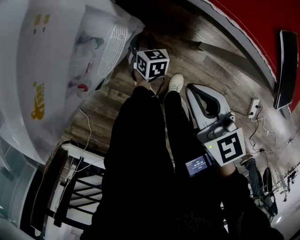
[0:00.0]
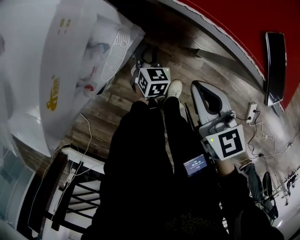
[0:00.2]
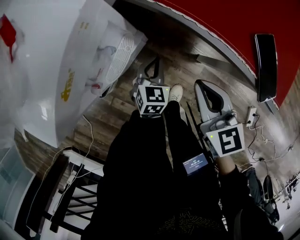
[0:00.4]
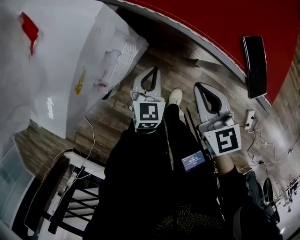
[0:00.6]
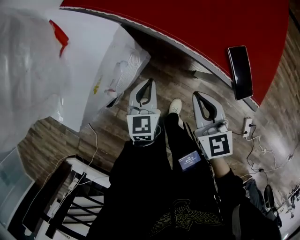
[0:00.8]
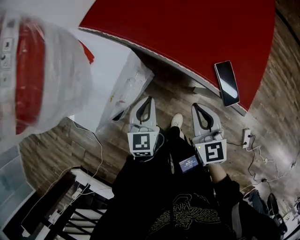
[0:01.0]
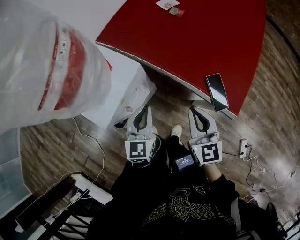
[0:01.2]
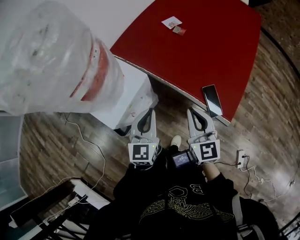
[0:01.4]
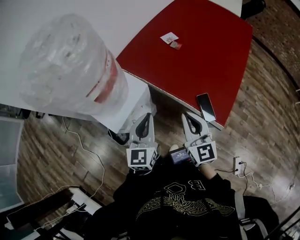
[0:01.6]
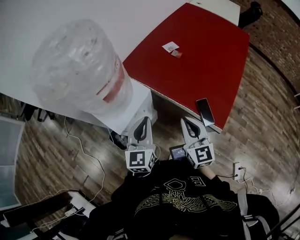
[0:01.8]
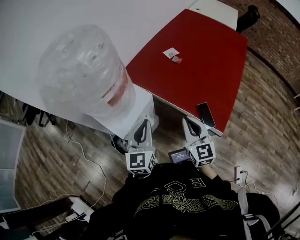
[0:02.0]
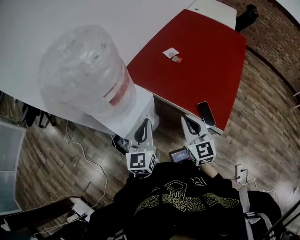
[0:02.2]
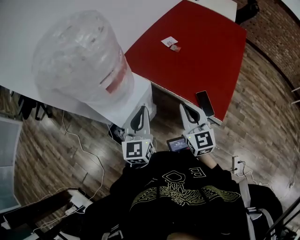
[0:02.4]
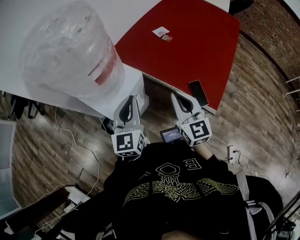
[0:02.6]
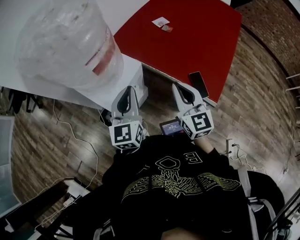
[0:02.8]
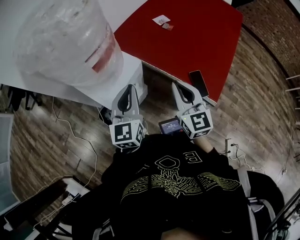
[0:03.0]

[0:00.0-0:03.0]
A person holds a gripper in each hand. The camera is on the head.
0.0 to 1.6 s: The left gripper goes some 60 cm upward, angles its fingers upward, by approximately 50 degrees, and closes its fingers, while the right gripper moves upward, some 35 cm, and rotates roughly 30 degrees.
1.6 to 3.0 s: The left gripper travels to the left by roughly 5 cm.

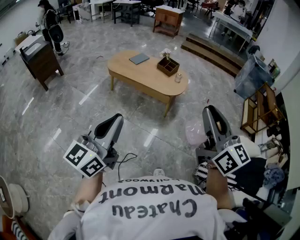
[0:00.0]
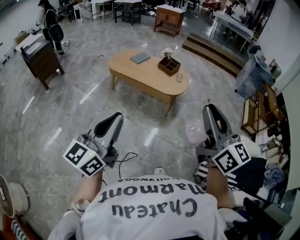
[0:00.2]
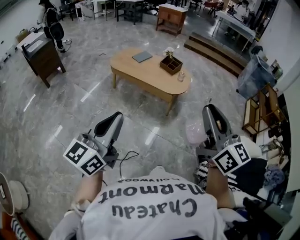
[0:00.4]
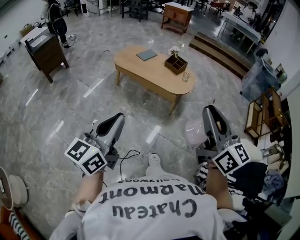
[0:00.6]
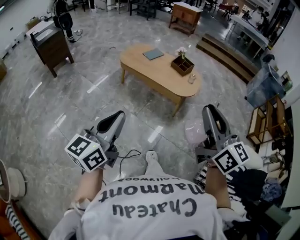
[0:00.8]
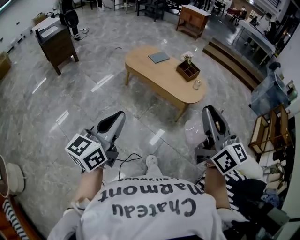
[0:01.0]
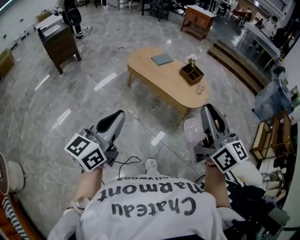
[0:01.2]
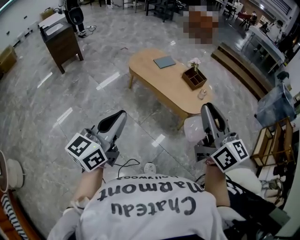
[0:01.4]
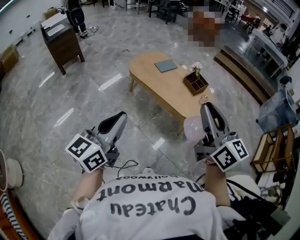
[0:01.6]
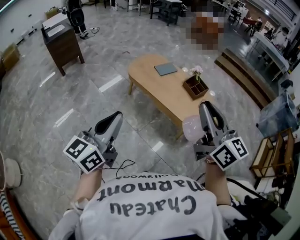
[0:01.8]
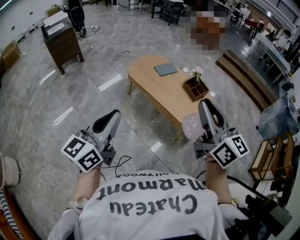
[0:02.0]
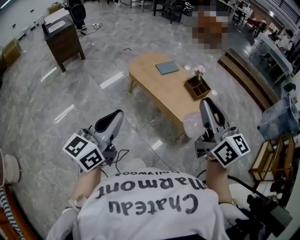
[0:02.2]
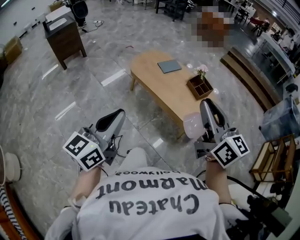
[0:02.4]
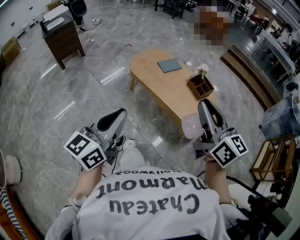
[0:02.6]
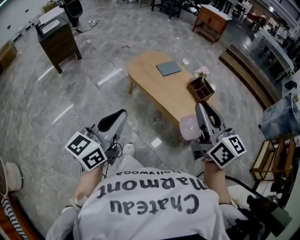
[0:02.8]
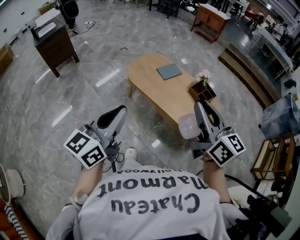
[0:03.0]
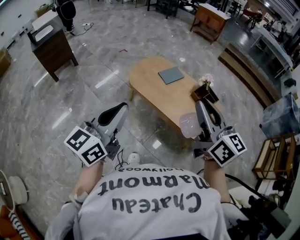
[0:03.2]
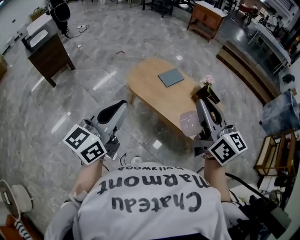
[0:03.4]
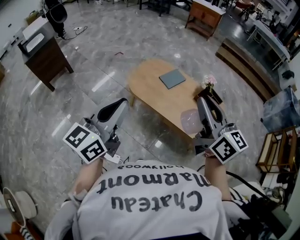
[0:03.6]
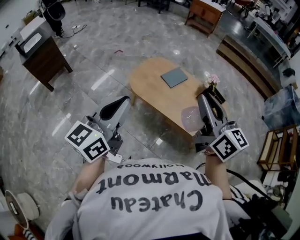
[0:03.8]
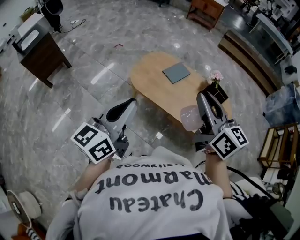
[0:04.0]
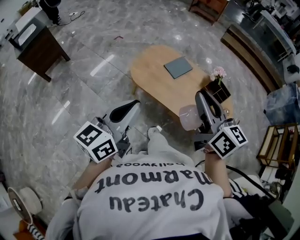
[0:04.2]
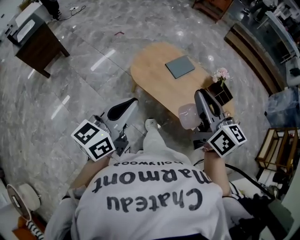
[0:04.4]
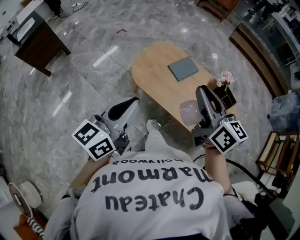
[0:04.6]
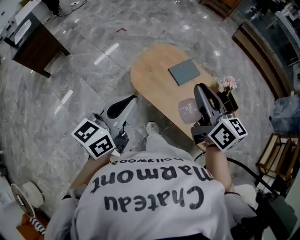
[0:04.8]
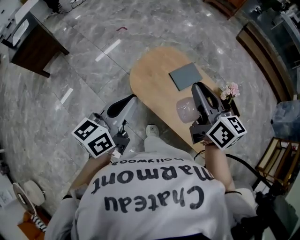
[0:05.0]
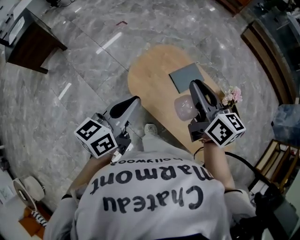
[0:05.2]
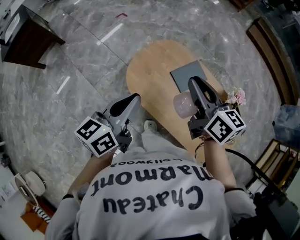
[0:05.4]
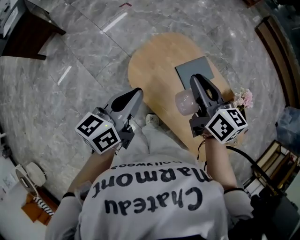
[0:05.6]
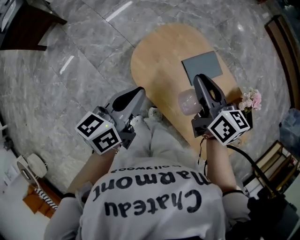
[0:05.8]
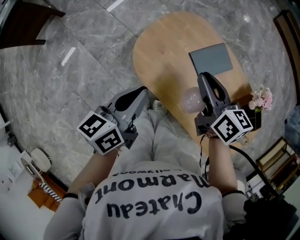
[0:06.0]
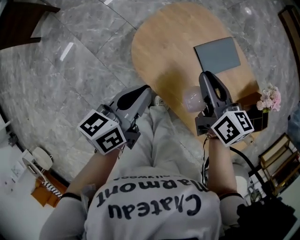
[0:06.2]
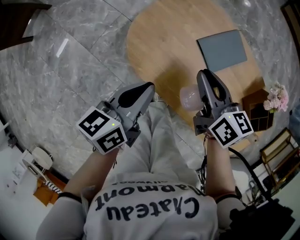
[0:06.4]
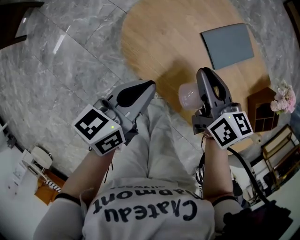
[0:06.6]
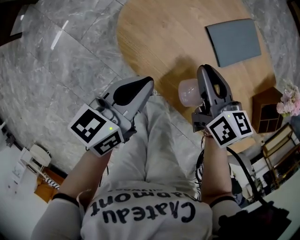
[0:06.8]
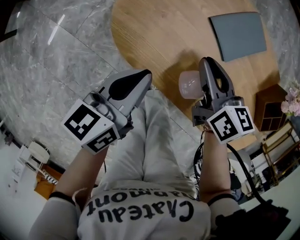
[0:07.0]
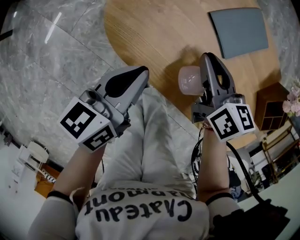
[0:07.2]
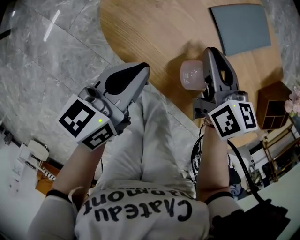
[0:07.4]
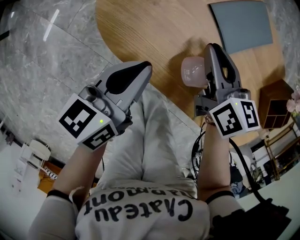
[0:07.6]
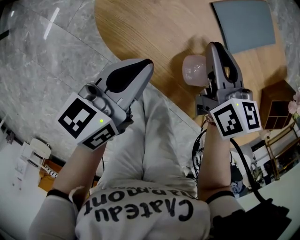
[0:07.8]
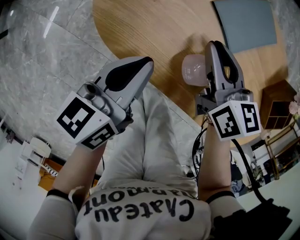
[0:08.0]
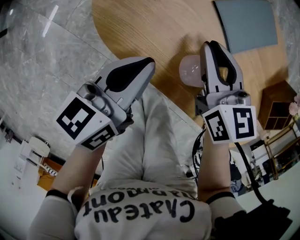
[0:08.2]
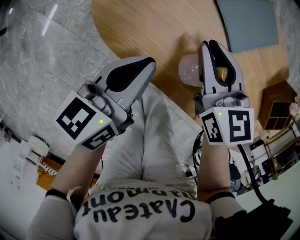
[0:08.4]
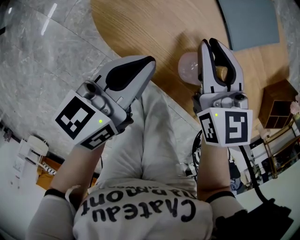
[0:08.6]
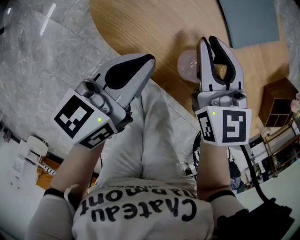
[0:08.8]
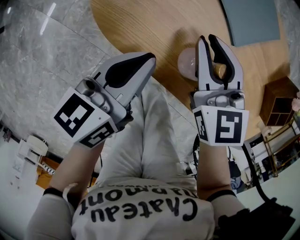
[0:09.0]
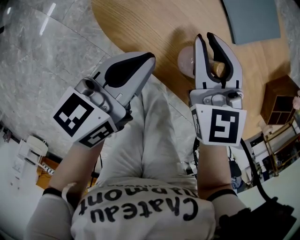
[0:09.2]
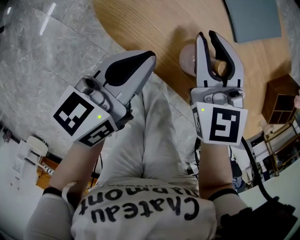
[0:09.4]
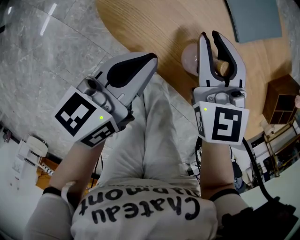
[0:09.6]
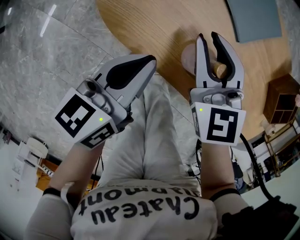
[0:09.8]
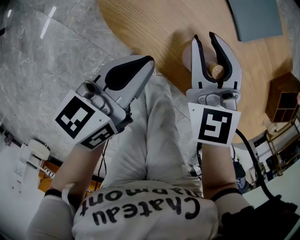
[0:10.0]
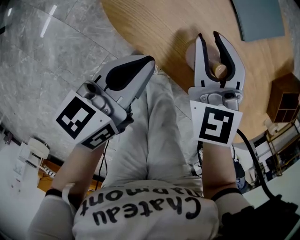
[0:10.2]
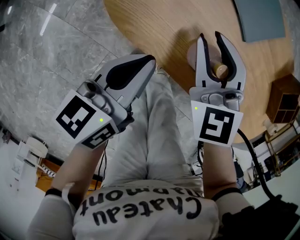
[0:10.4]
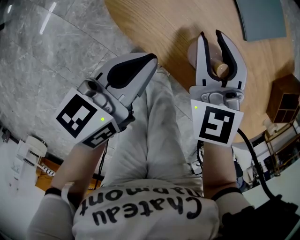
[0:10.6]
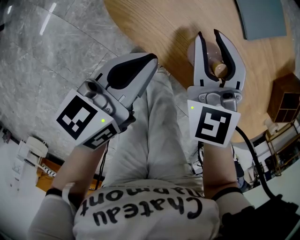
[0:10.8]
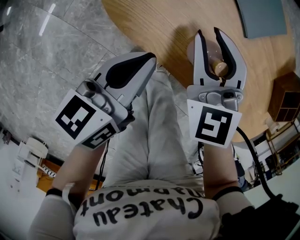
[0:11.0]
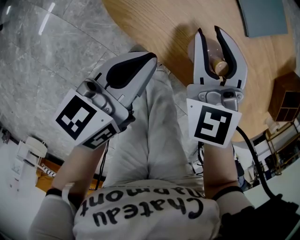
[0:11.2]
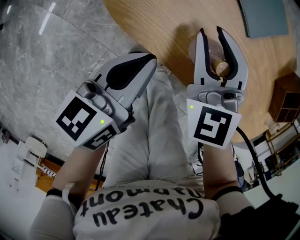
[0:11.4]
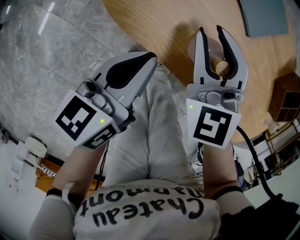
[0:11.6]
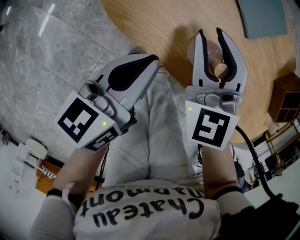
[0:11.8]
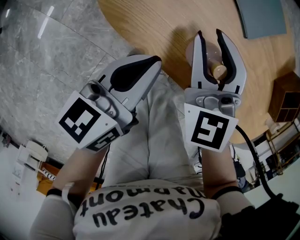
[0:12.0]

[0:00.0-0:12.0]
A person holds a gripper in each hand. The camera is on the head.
0.0 to 1.6 s: The two grippers go approximately 25 cm forward.
1.6 to 3.0 s: Both grippers move forward, about 20 cm.
3.0 to 4.4 s: The right gripper goes about 25 cm forward and to the left, while the left gripper shifts some 25 cm forward.
4.4 to 6.0 s: The two grippers go roughly 40 cm forward and downward. The right gripper turns by about 30 degrees; the left gripper rotates approximately 30 degrees.
6.0 to 7.6 s: Both grippers move downward, about 25 cm.
7.6 to 9.0 s: The right gripper moves roughly 5 cm, and changes its angle by roughly 30 degrees.
9.0 to 10.4 s: There are only small adjustments of the grippers.
10.4 to 12.0 s: There are only small adjustments of the grippers.

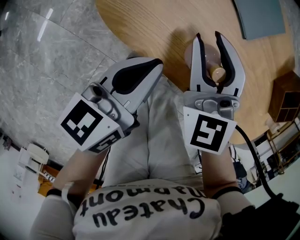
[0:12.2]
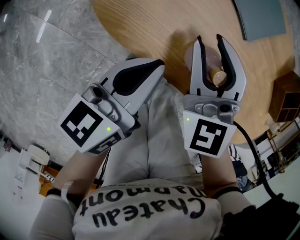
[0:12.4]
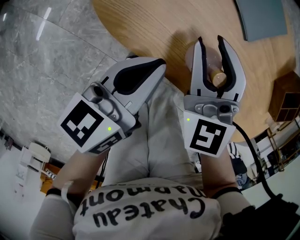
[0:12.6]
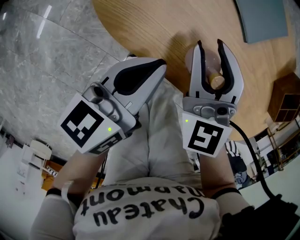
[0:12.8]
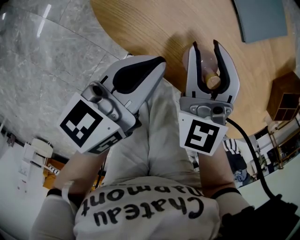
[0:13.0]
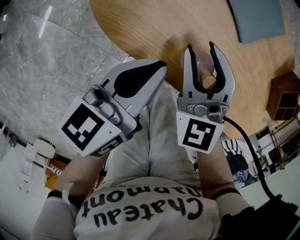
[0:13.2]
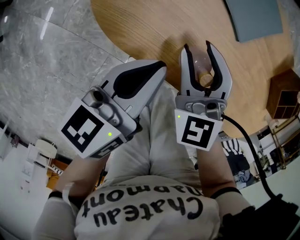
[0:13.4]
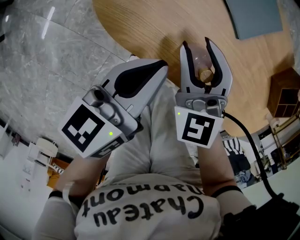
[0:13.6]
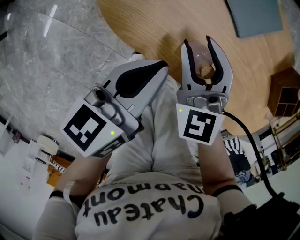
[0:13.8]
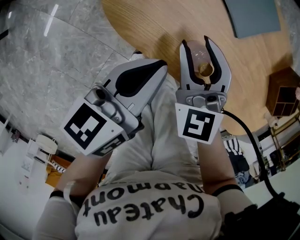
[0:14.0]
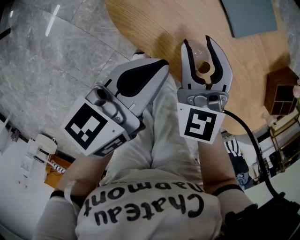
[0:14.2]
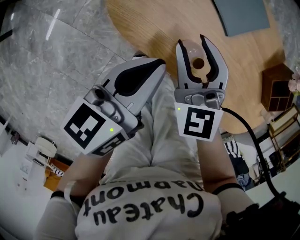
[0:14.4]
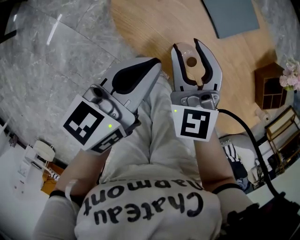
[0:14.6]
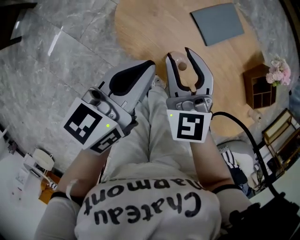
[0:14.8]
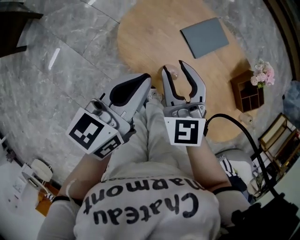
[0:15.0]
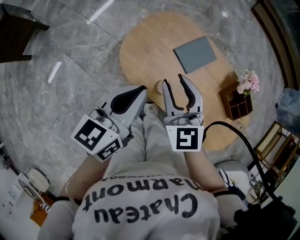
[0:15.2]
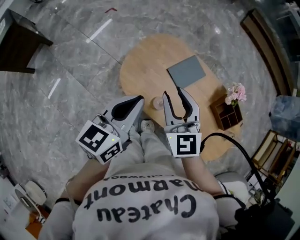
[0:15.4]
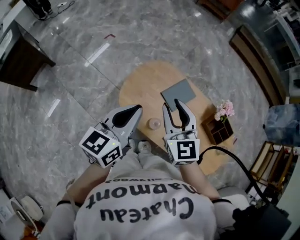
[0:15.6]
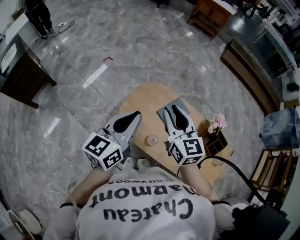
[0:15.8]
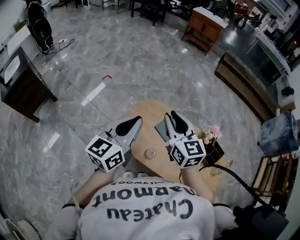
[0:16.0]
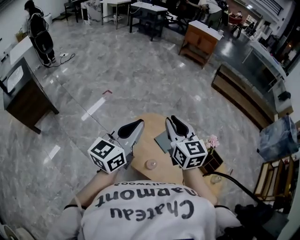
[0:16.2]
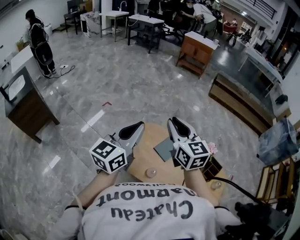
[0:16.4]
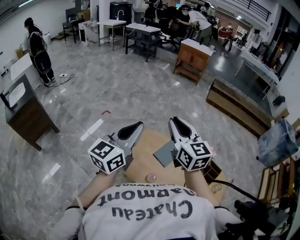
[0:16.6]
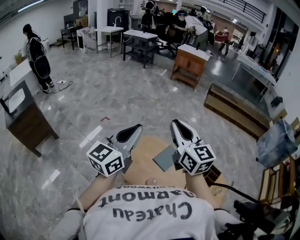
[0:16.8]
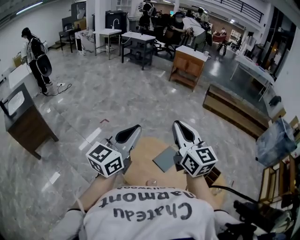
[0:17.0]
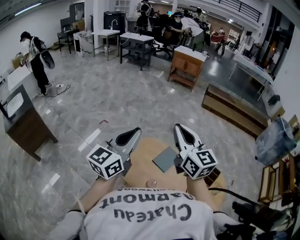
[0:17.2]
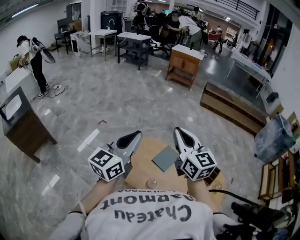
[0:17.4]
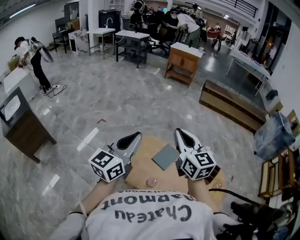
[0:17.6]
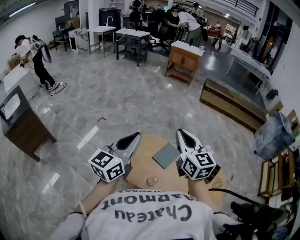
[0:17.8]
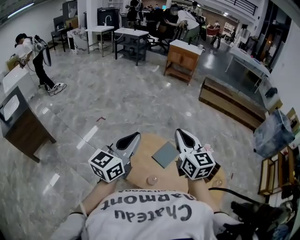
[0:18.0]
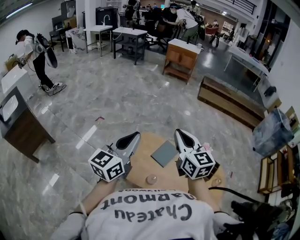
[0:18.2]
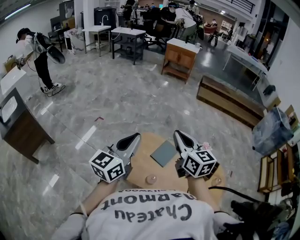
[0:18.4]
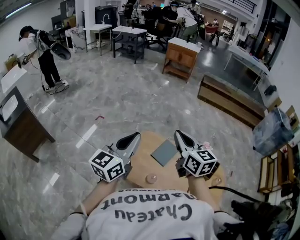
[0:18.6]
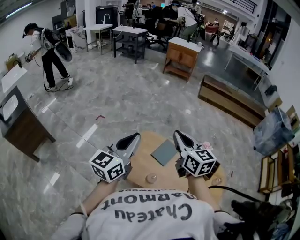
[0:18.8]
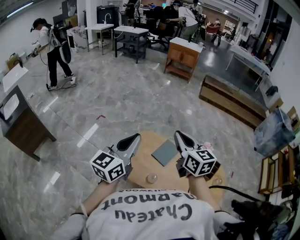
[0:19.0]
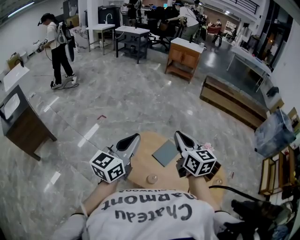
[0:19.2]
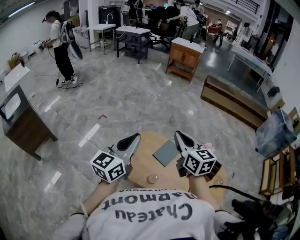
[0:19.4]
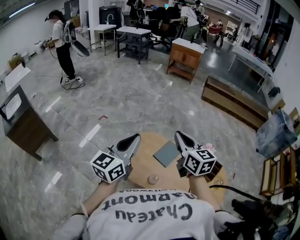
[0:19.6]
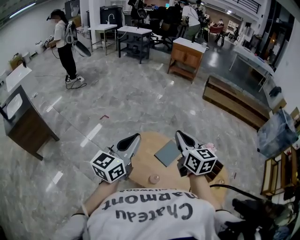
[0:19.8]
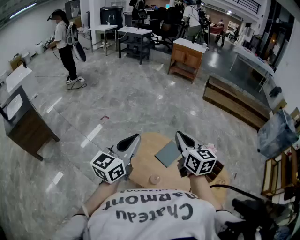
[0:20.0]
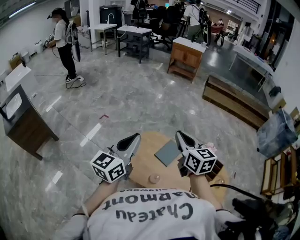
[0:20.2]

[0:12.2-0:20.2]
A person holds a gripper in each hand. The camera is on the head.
12.2 to 13.8 s: The left gripper shifts about 5 cm upward.
13.8 to 15.4 s: The grippers both shift upward by roughly 30 cm. The left gripper swivels some 20 degrees.
15.4 to 17.0 s: The grippers both shift upward by about 30 cm. The left gripper rotates about 30 degrees. Meanwhile the right gripper changes its angle by roughly 20 degrees, and closes.
17.0 to 18.6 s: The left gripper shifts roughly 5 cm downward. Meanwhile the right gripper is displaced downward by some 10 cm.
18.6 to 20.2 s: The grippers move only a little.

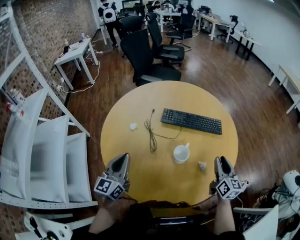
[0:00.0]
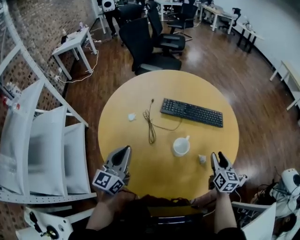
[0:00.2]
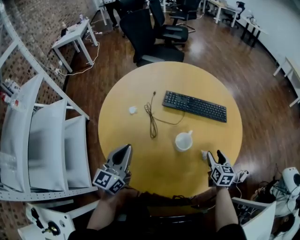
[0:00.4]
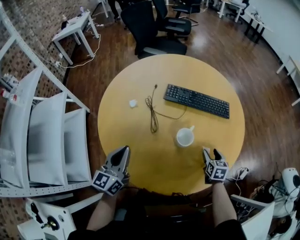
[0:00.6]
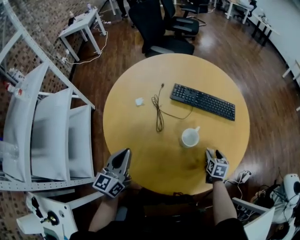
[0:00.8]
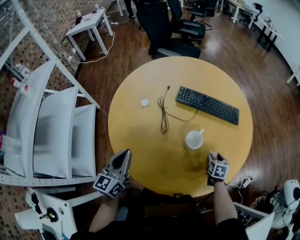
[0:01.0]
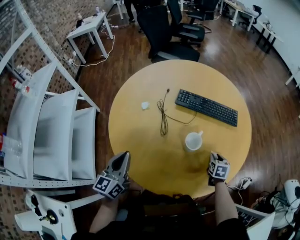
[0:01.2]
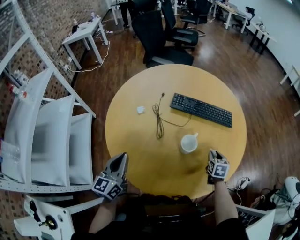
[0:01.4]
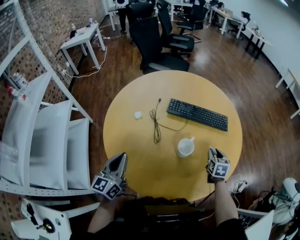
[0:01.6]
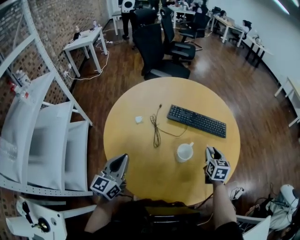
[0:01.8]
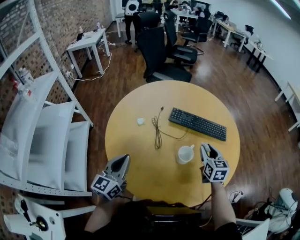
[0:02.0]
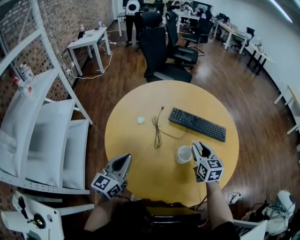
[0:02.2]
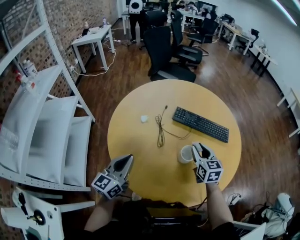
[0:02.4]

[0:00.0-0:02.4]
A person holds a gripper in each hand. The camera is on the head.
0.0 to 1.2 s: The right gripper goes approximately 20 cm downward, tilts its fingers roughly 40 degrees downward, and opens, then closes once more. Meanwhile the left gripper moves roughly 5 cm.
1.2 to 2.4 s: The right gripper goes about 25 cm upward and to the left, and swivels roughly 40 degrees.
